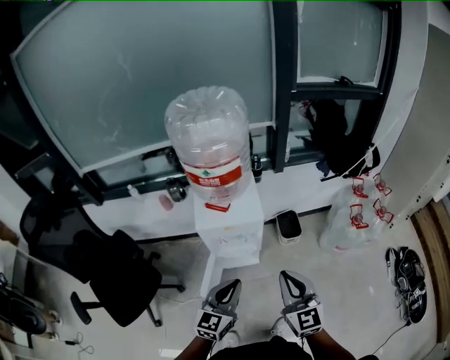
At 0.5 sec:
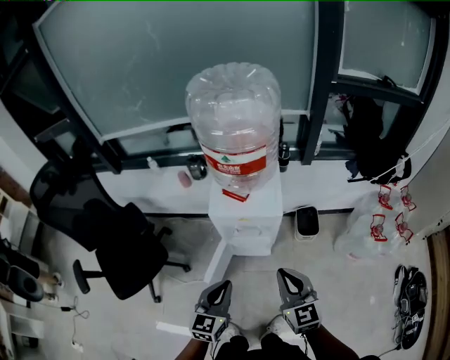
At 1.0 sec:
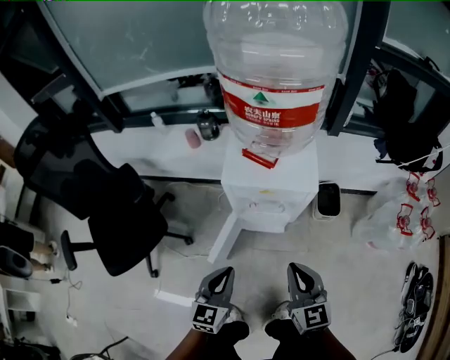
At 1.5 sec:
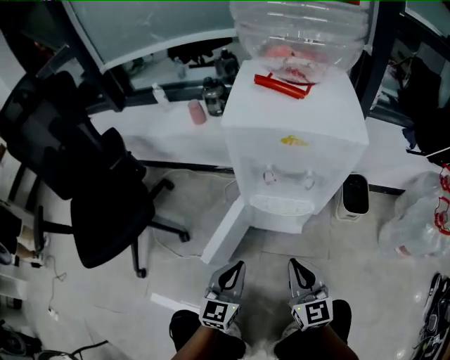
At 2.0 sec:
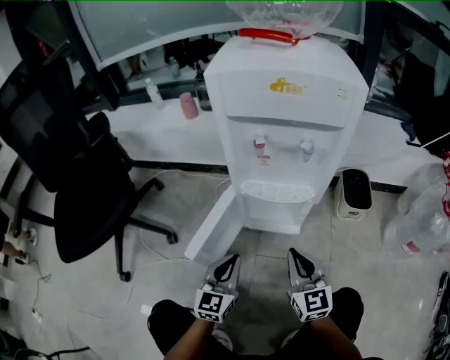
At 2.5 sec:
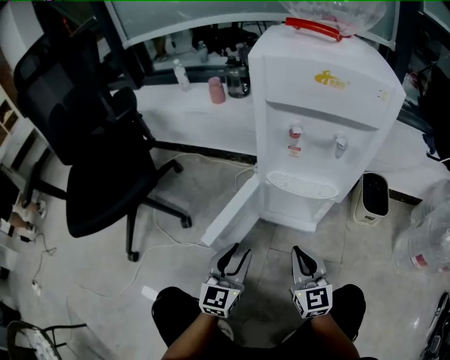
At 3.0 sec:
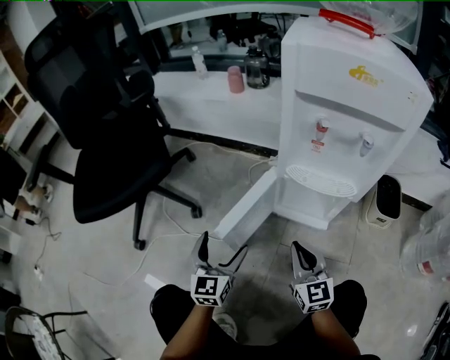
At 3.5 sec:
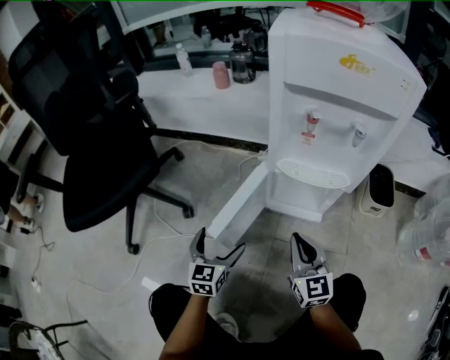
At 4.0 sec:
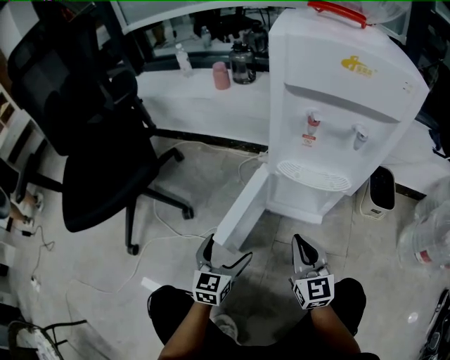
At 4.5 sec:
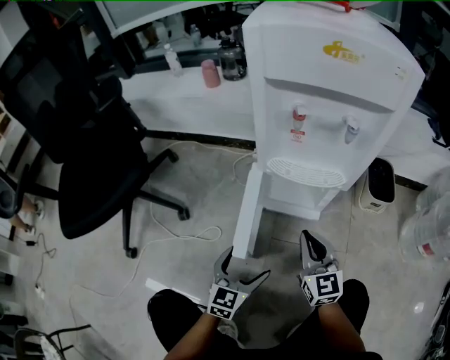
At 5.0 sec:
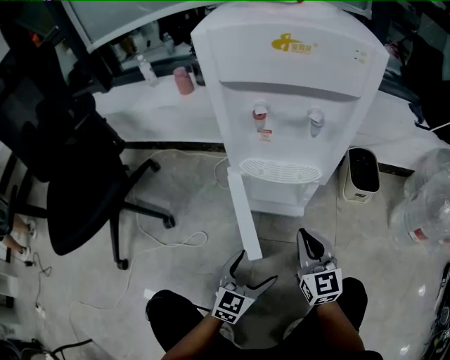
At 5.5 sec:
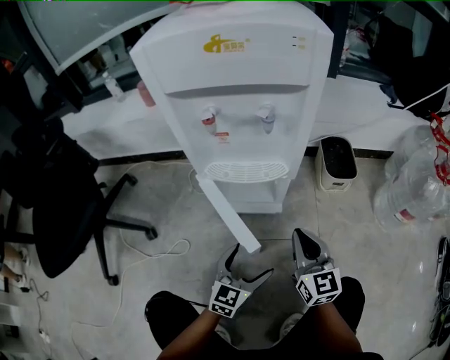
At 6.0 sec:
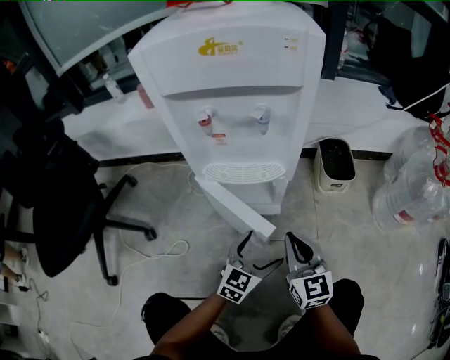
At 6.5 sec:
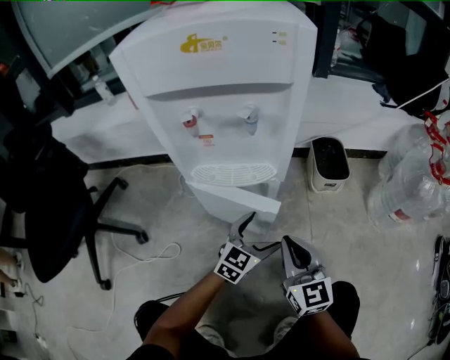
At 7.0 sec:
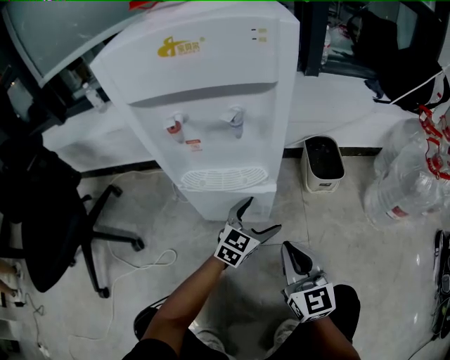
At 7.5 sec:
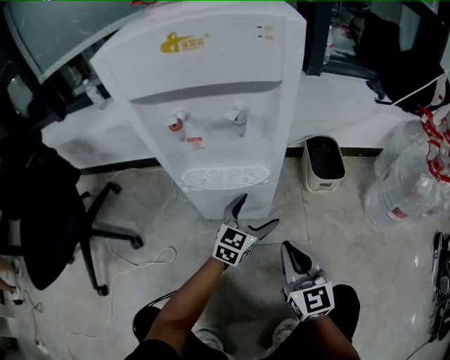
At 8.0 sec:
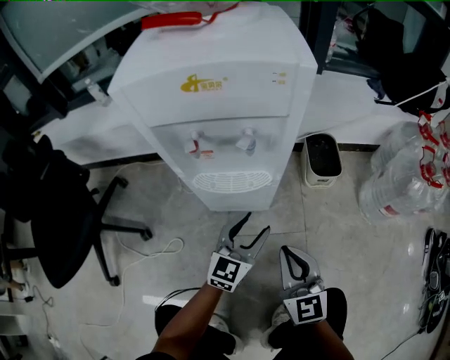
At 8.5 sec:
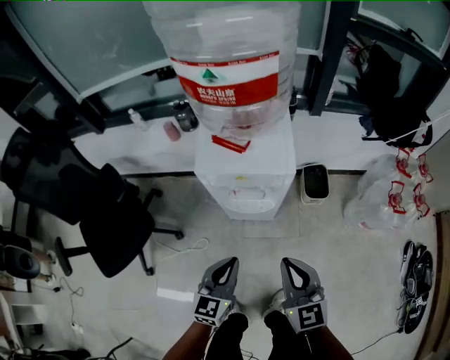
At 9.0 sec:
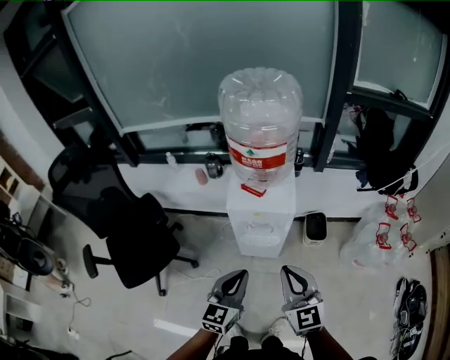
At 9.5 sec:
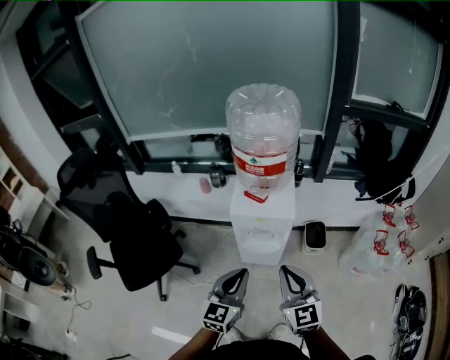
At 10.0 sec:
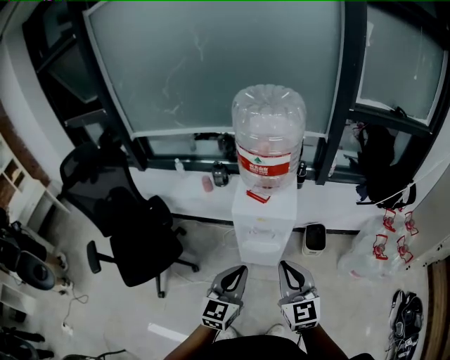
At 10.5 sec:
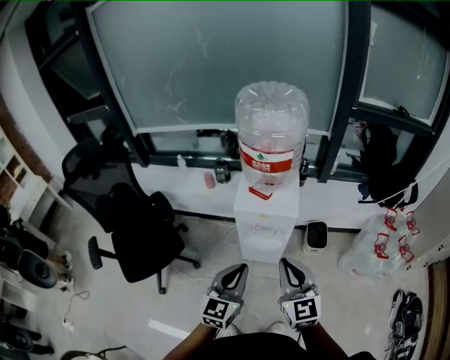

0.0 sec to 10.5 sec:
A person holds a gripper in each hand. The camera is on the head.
0.0 sec to 2.0 sec: The grippers both shift downward by some 50 cm. The left gripper changes its angle by roughly 20 degrees.
2.0 sec to 4.0 sec: The right gripper is displaced to the left by about 5 cm, while the left gripper is displaced to the left and downward by about 10 cm, and opens its fingers.
4.0 sec to 6.5 sec: The right gripper shifts by roughly 15 cm. Meanwhile the left gripper moves roughly 30 cm, and changes its angle by about 40 degrees.
6.5 sec to 8.5 sec: The grippers both shift upward by about 40 cm. The left gripper turns by roughly 20 degrees, and closes its fingers.
8.5 sec to 10.5 sec: The two grippers go some 20 cm upward.

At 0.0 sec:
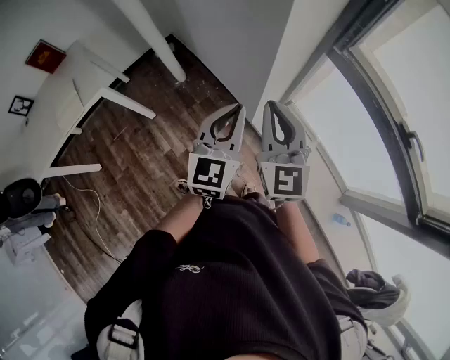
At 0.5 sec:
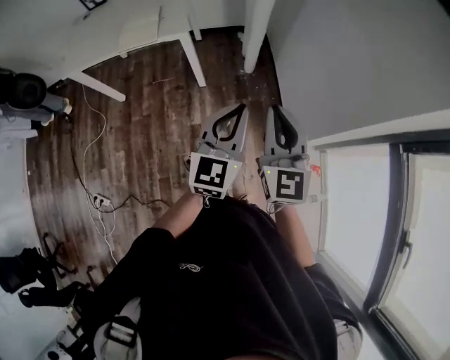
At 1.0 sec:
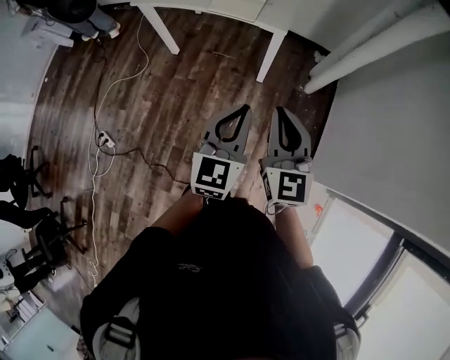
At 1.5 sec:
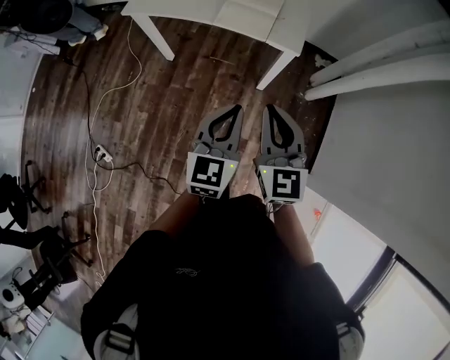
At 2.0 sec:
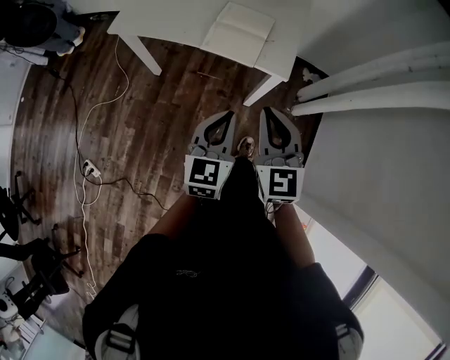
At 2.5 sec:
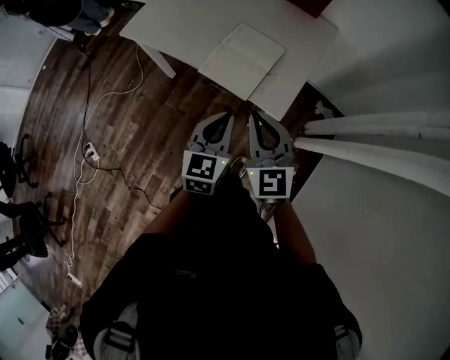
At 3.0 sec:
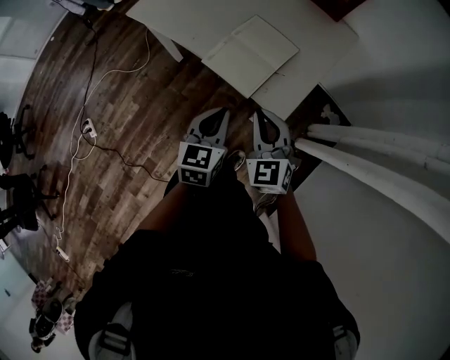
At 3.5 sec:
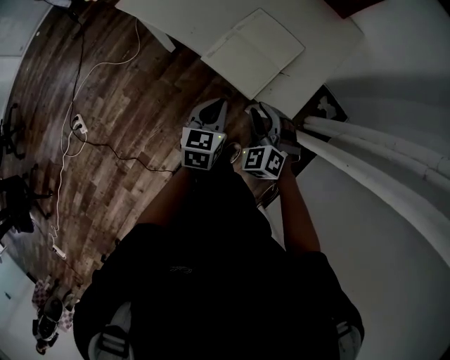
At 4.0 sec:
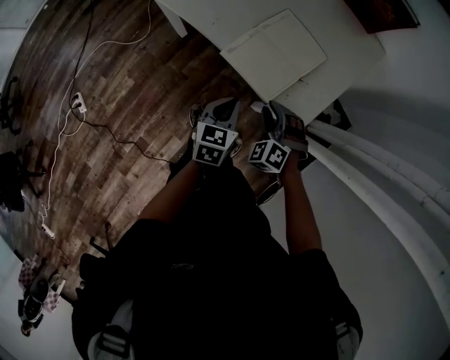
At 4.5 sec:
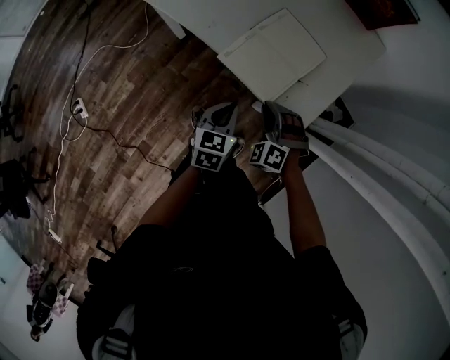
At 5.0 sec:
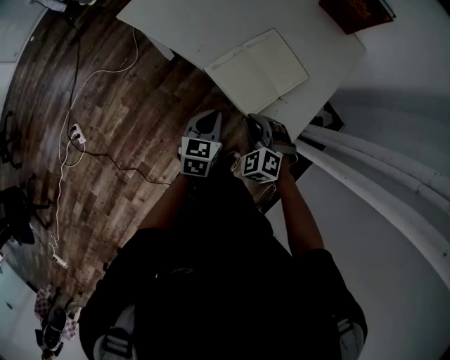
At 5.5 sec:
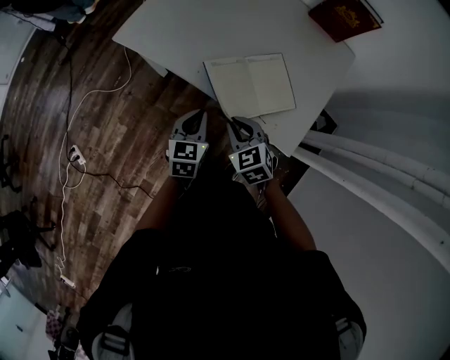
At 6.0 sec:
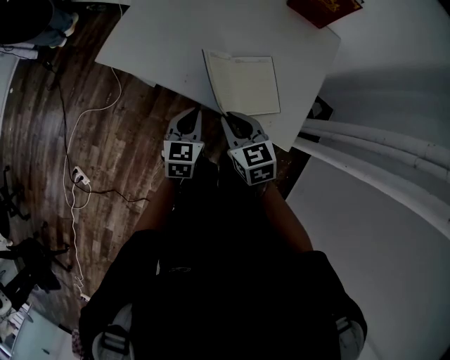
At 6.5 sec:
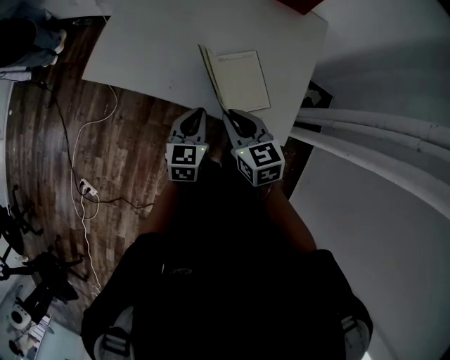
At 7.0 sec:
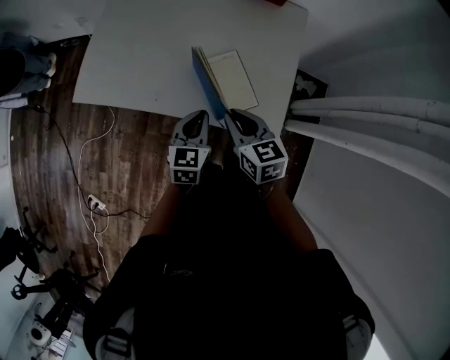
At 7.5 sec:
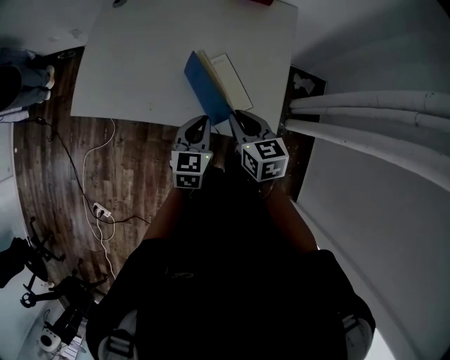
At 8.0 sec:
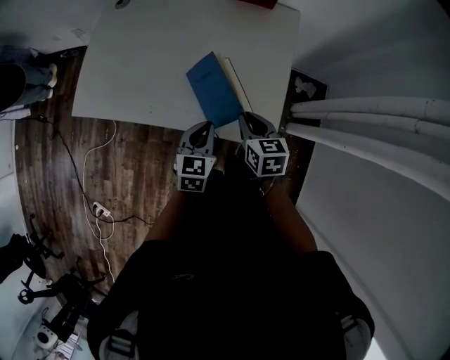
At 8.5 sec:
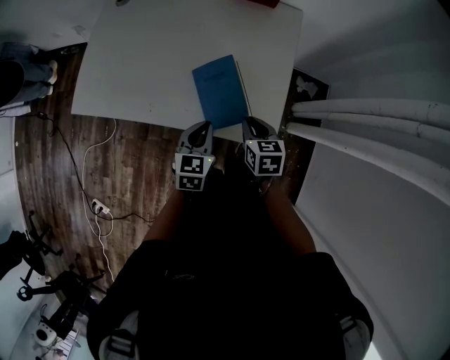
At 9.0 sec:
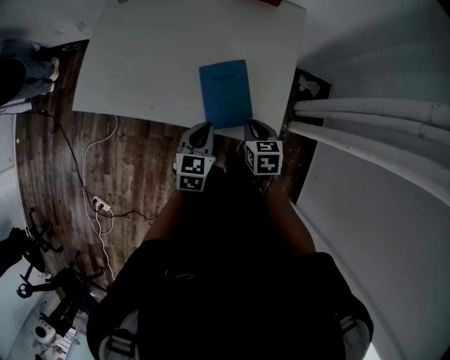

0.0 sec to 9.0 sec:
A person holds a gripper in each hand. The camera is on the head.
0.0 sec to 2.0 sec: The pair of grippers is taken approximately 70 cm. The left gripper turns by some 50 degrees. The right gripper swivels approximately 60 degrees.
2.0 sec to 4.5 sec: Both grippers travel together downward and forward, approximately 30 cm. The right gripper rotates around the line of its fingers by roughly 60 degrees, counterclockwise from behind, while the left gripper turns by some 30 degrees.
4.5 sec to 7.0 sec: The left gripper goes approximately 15 cm forward and upward, and changes its angle by approximately 20 degrees. Meanwhile the right gripper heads upward and forward, covering approximately 15 cm, and twists some 80 degrees clockwise, seen from behind.
7.0 sec to 9.0 sec: The right gripper is displaced downward and to the right by approximately 15 cm, and rotates approximately 20 degrees.

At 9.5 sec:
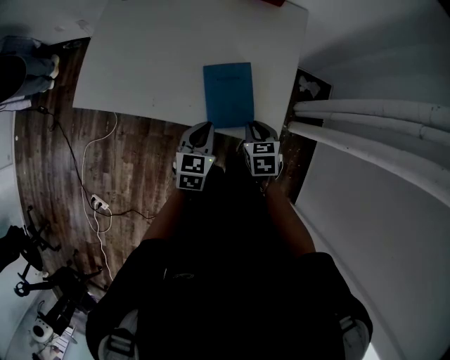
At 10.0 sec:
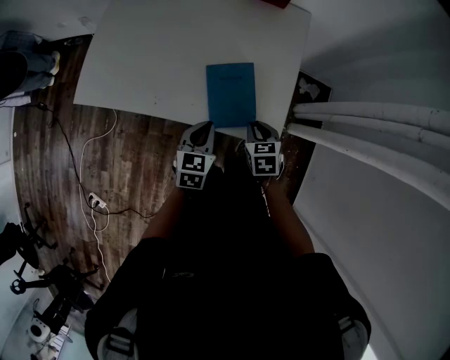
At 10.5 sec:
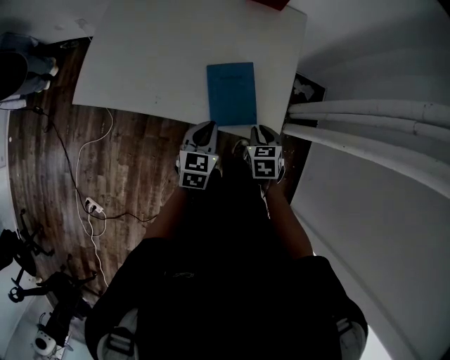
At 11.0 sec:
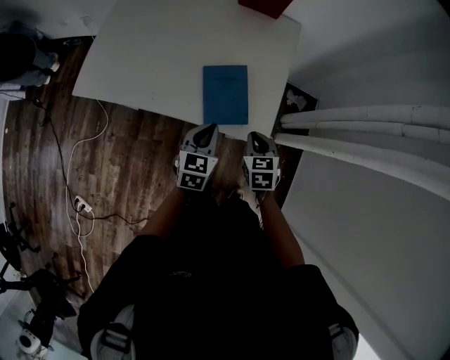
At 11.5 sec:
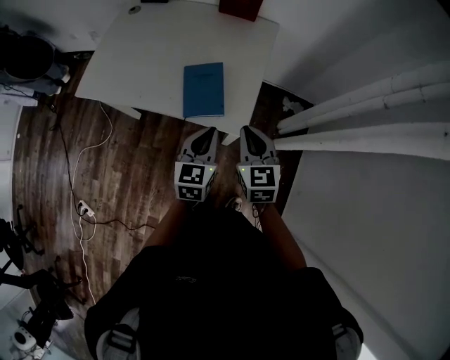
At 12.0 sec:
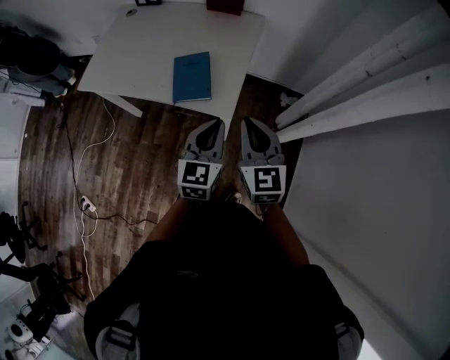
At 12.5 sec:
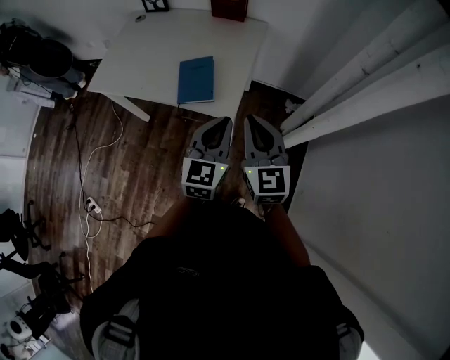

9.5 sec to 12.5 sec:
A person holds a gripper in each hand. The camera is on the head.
9.5 sec to 11.0 sec: The right gripper shifts by some 5 cm.
11.0 sec to 12.5 sec: The right gripper shifts approximately 30 cm upward, backward and to the right, and points its fingers approximately 40 degrees further upward. Meanwhile the left gripper goes some 30 cm to the right, upward and backward, and rotates approximately 20 degrees.

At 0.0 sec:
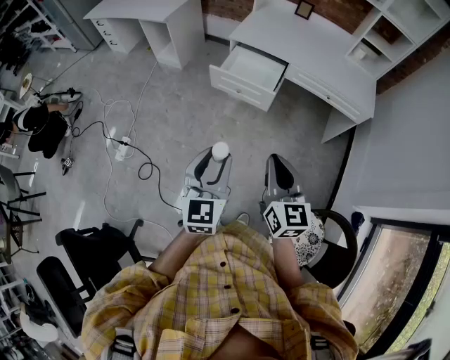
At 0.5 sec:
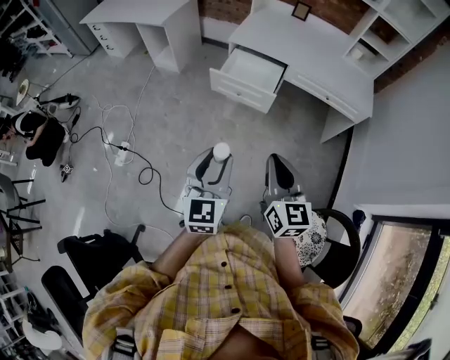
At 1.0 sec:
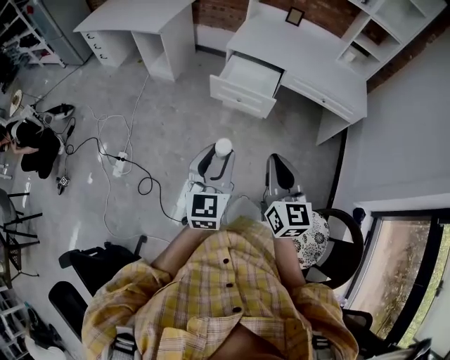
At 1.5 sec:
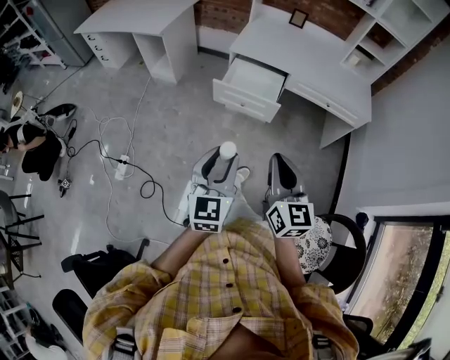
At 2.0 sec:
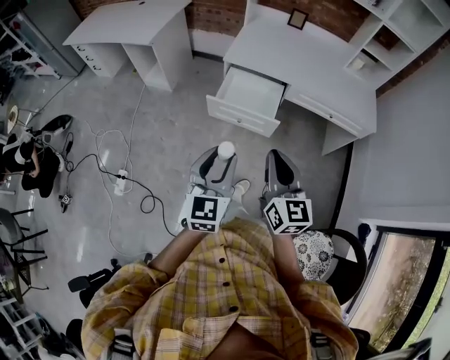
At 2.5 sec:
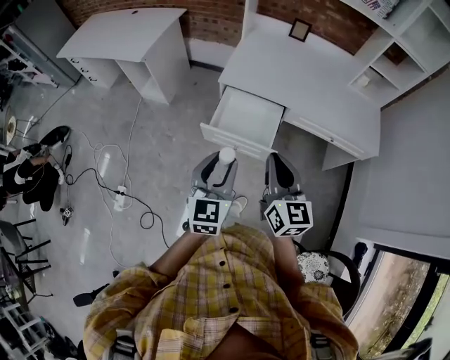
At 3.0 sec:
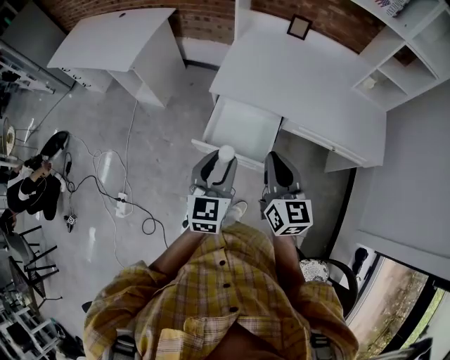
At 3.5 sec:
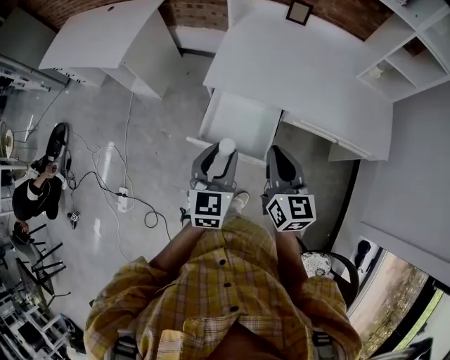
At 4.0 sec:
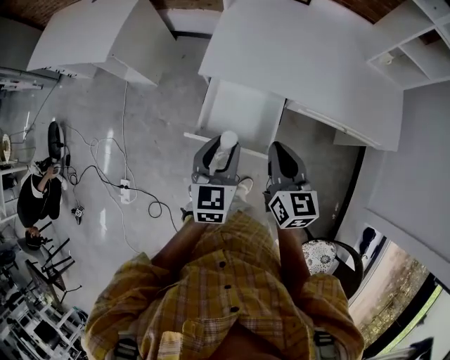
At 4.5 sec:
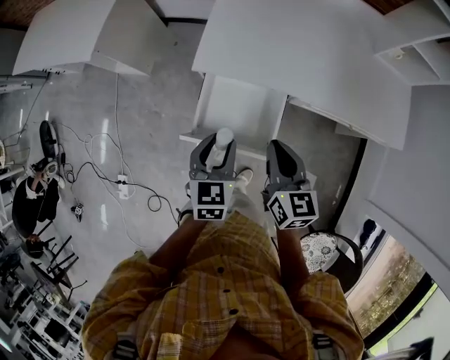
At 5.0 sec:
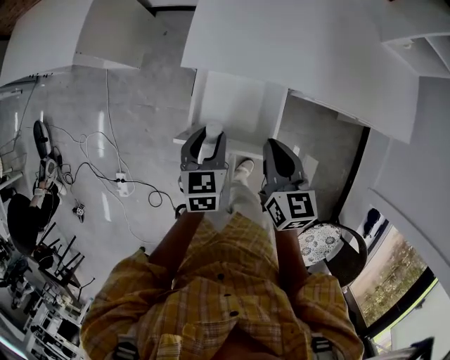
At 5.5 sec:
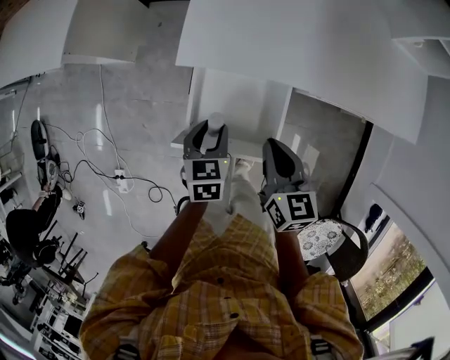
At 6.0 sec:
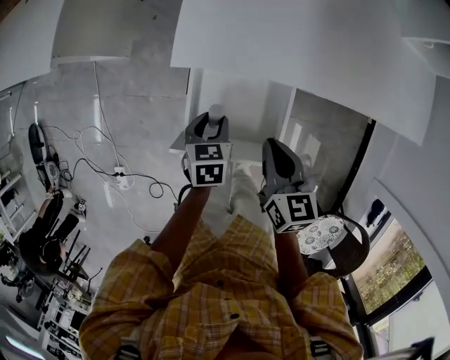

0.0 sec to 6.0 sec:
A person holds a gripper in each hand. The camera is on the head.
0.0 sec to 2.0 sec: The two grippers go roughly 20 cm forward.
2.0 sec to 4.0 sec: Both grippers travel together forward, approximately 35 cm.
4.0 sec to 6.0 sec: The left gripper is displaced downward and forward by approximately 30 cm, and angles its fingers downward, by roughly 30 degrees. Meanwhile the right gripper goes some 20 cm downward and forward.
